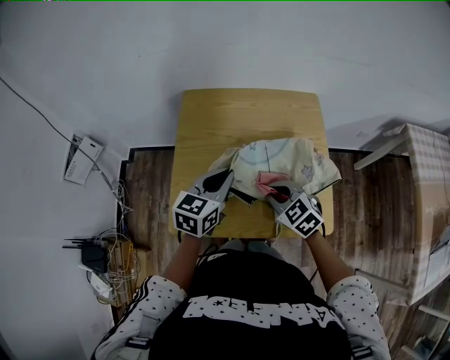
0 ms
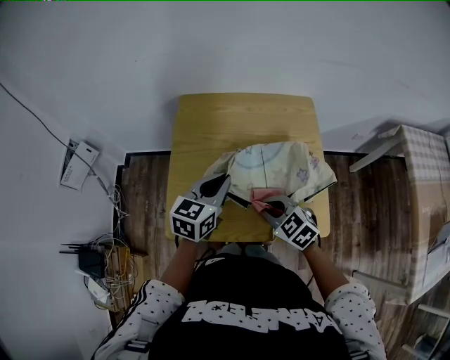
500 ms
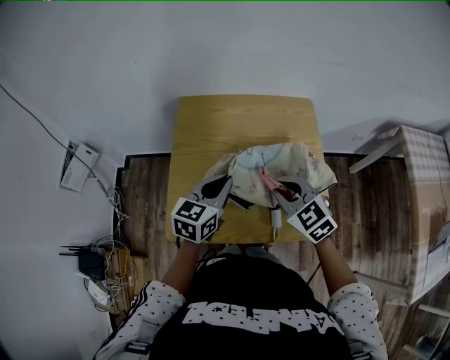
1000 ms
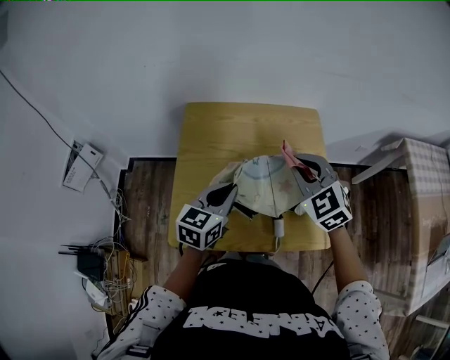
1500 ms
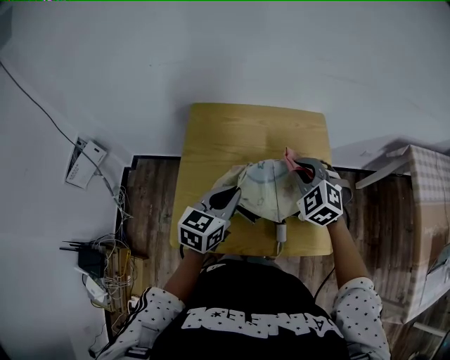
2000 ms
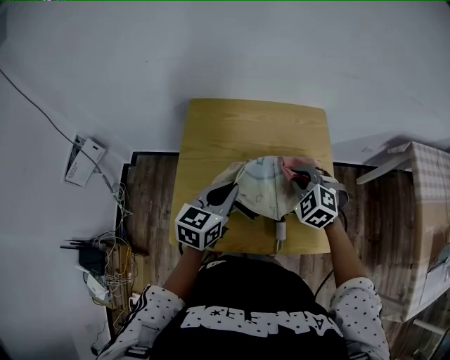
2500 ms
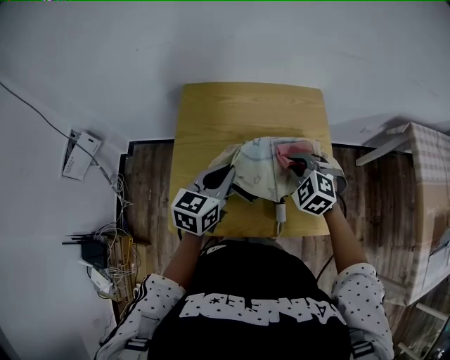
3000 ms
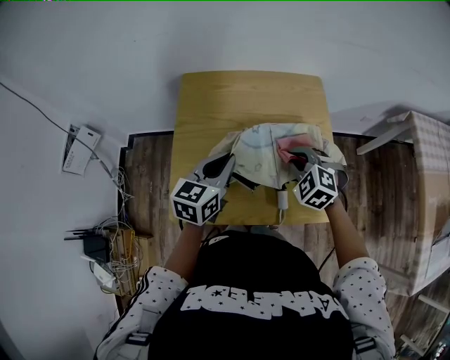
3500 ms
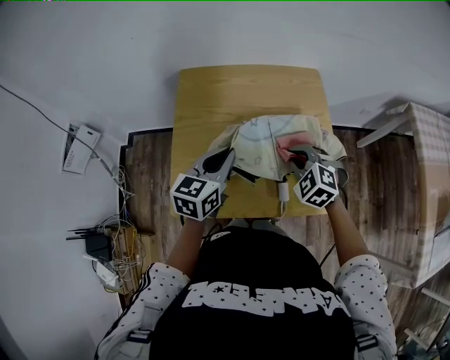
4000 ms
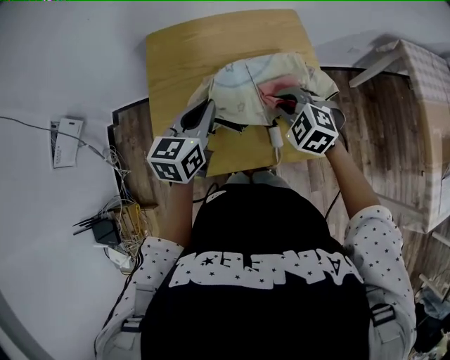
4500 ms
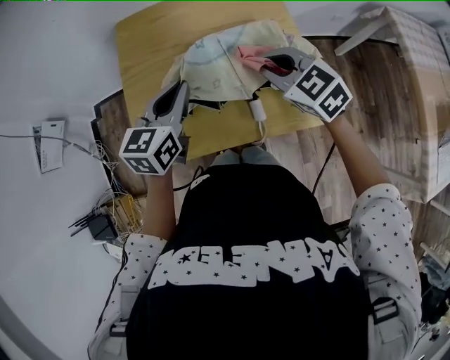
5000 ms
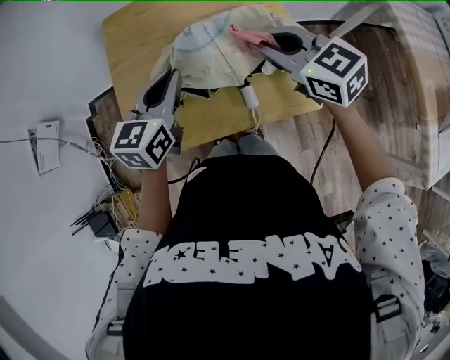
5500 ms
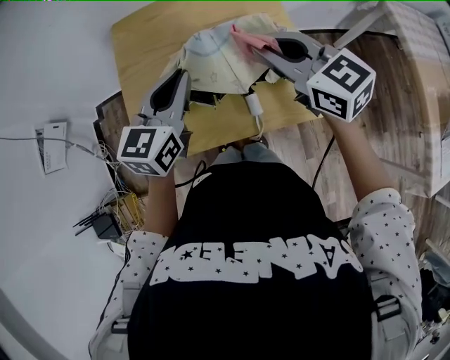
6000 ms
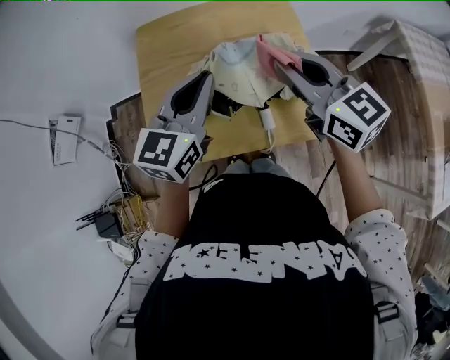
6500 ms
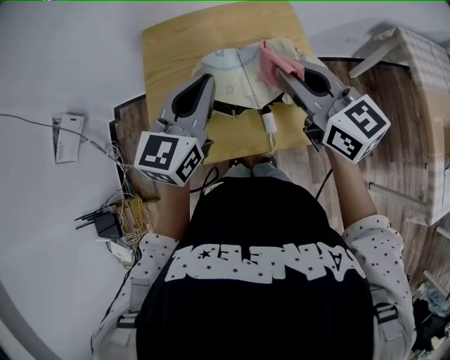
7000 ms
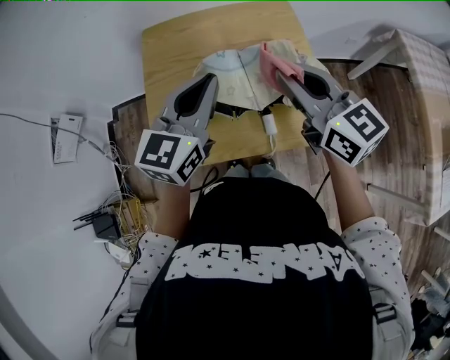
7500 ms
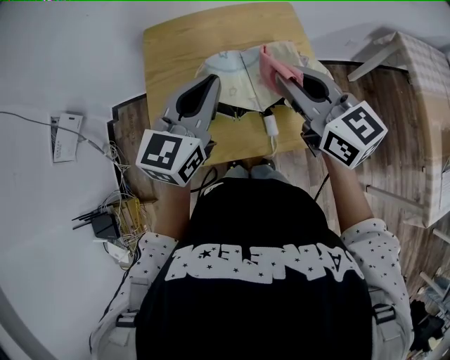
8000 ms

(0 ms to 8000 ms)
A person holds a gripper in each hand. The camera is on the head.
0 ms - 2000 ms: The right gripper moves forward, upward and to the right, some 15 cm, and changes its angle by approximately 30 degrees.
2000 ms - 4000 ms: The right gripper travels backward and downward by roughly 10 cm.
4000 ms - 6000 ms: The left gripper moves upward, approximately 5 cm. The right gripper moves upward, approximately 15 cm, and points its fingers approximately 30 degrees further upward.
6000 ms - 8000 ms: The left gripper is displaced upward by about 5 cm.

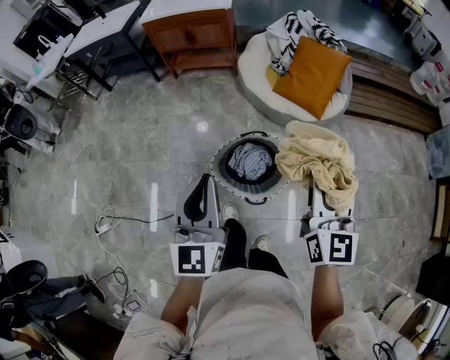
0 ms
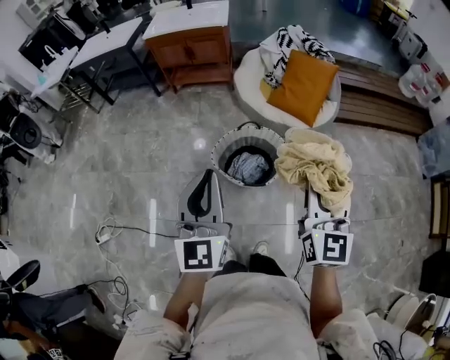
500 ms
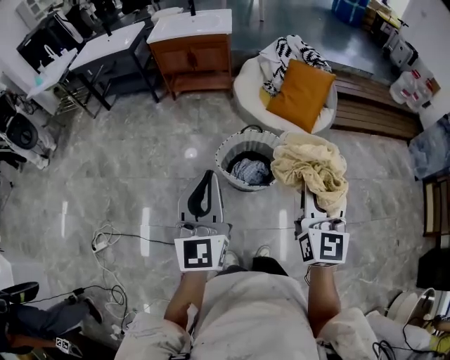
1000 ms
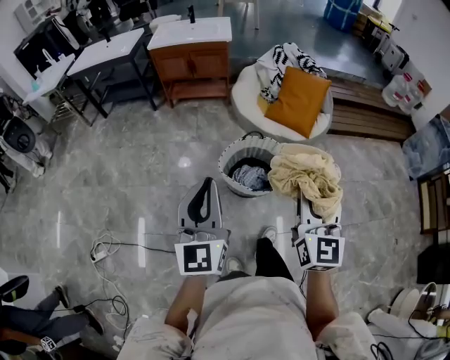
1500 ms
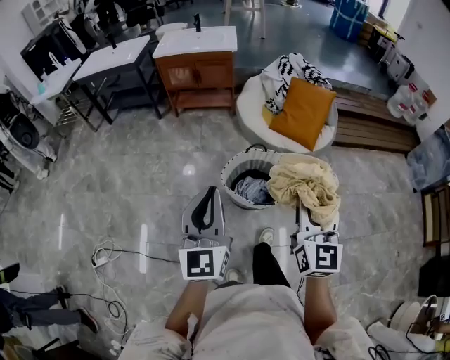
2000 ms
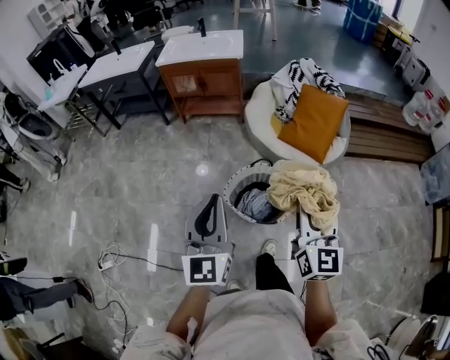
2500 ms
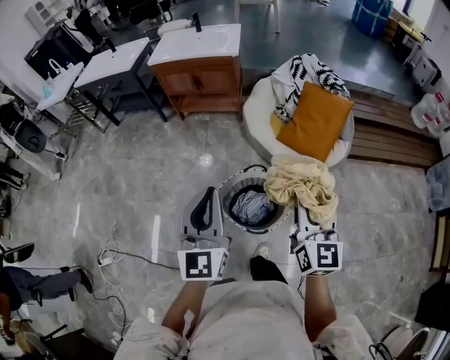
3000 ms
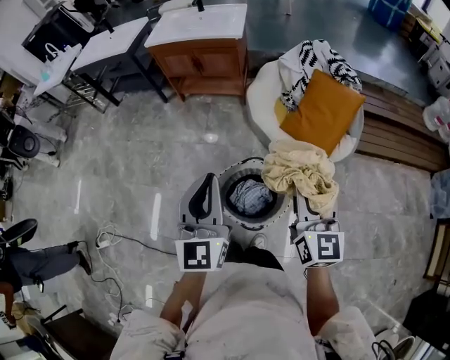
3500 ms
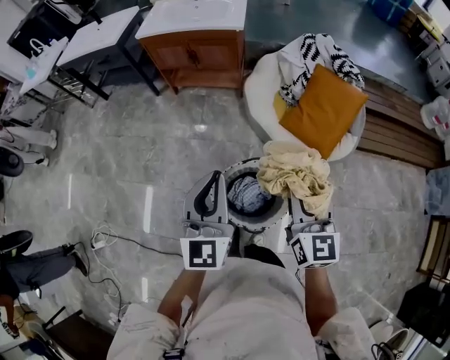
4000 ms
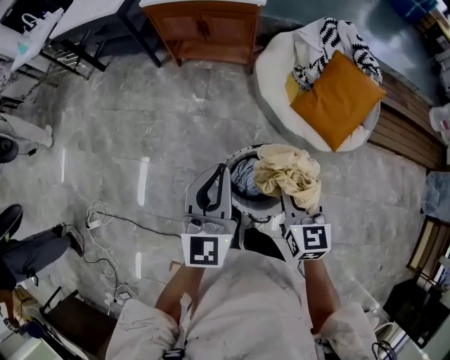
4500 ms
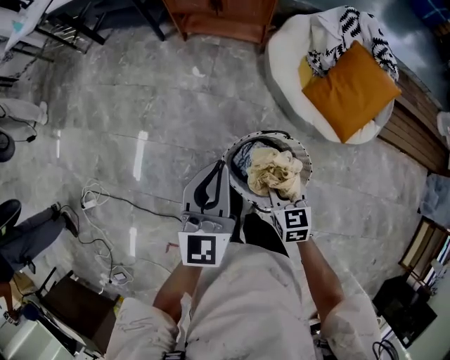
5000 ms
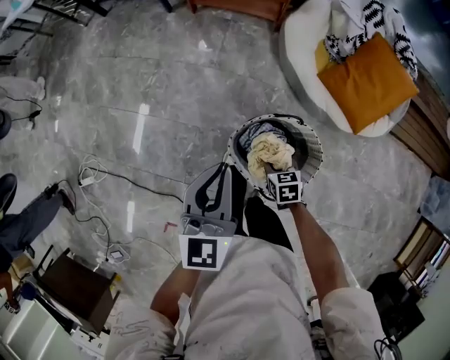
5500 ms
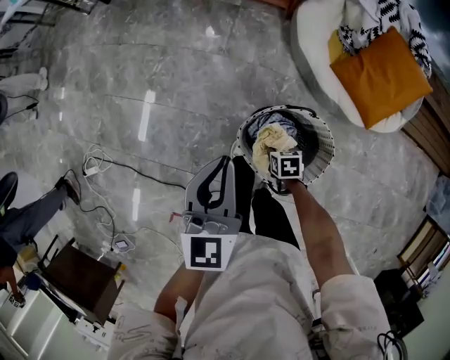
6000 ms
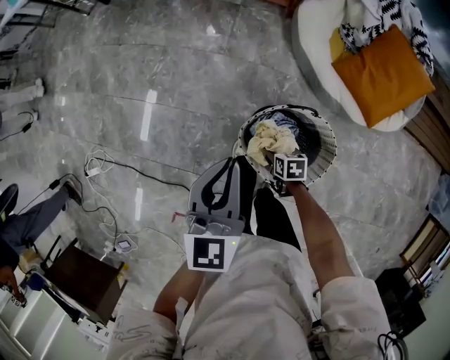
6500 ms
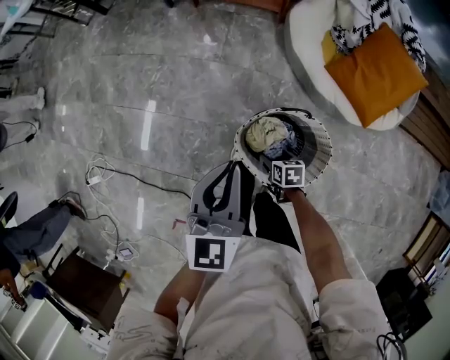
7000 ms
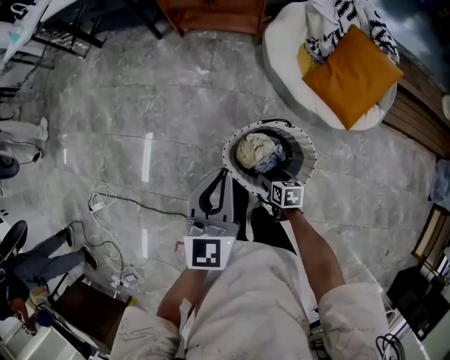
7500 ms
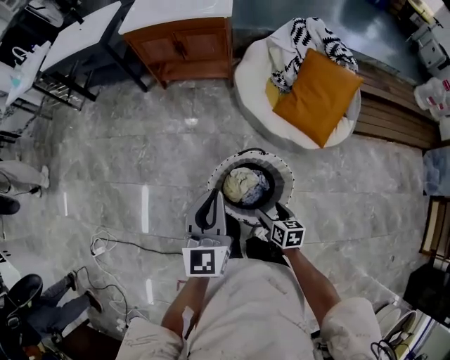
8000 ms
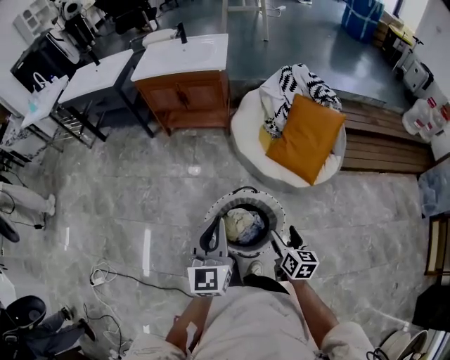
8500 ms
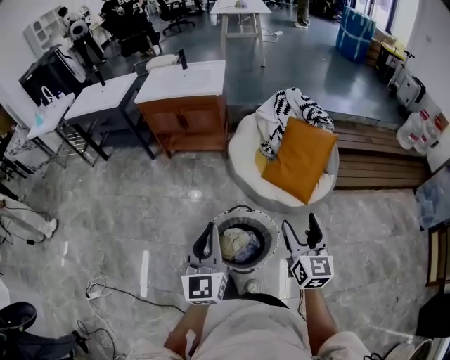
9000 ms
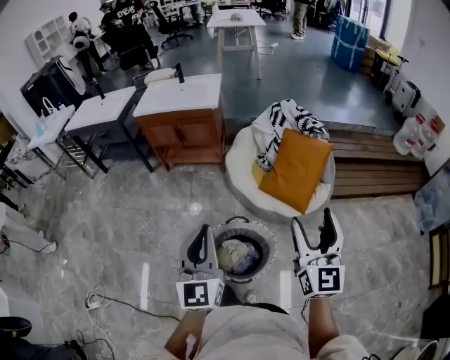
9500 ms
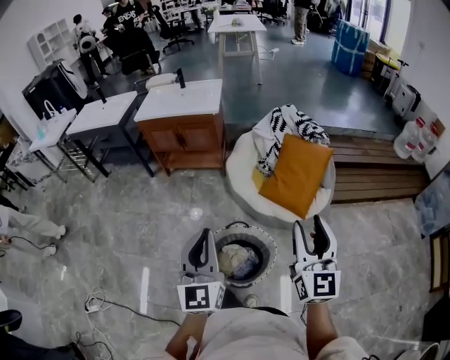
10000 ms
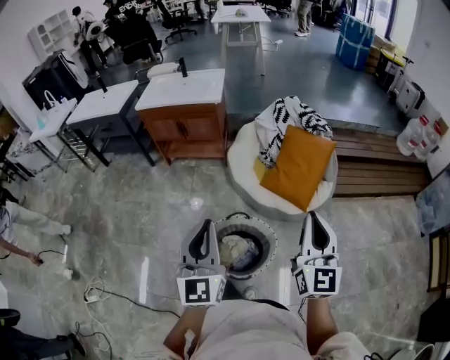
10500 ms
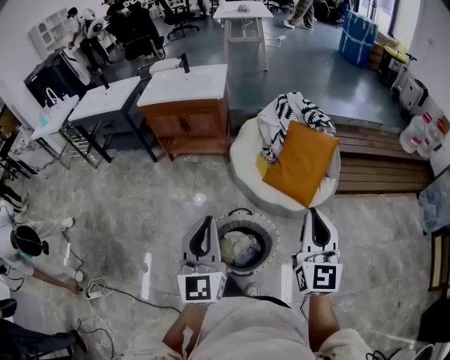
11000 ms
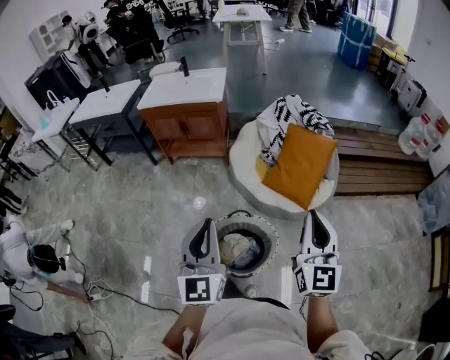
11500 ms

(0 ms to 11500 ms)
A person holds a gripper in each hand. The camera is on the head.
0 ms - 2000 ms: The grippers both shift to the left and backward by roughly 15 cm.
2000 ms - 4000 ms: Both grippers move forward, approximately 35 cm.
4000 ms - 6000 ms: The right gripper is displaced downward by approximately 50 cm, and tilts its fingers about 60 degrees downward. The left gripper moves downward, approximately 15 cm, and turns by about 20 degrees.
6000 ms - 7500 ms: The right gripper travels backward and upward by about 10 cm, and opens. The left gripper is displaced to the right by approximately 5 cm.
7500 ms - 9500 ms: The left gripper is displaced upward, to the right and backward by some 25 cm, and swivels roughly 20 degrees. The right gripper moves upward and to the right, roughly 60 cm, and tilts its fingers roughly 60 degrees upward.
9500 ms - 11500 ms: The right gripper closes its fingers.

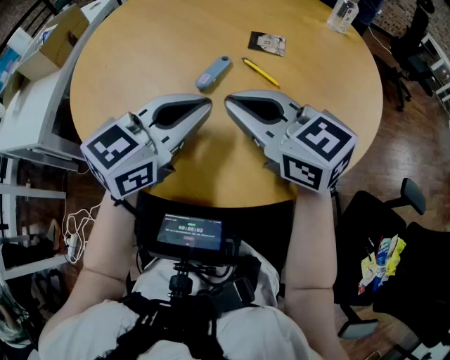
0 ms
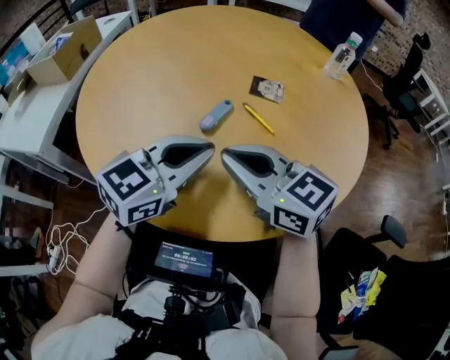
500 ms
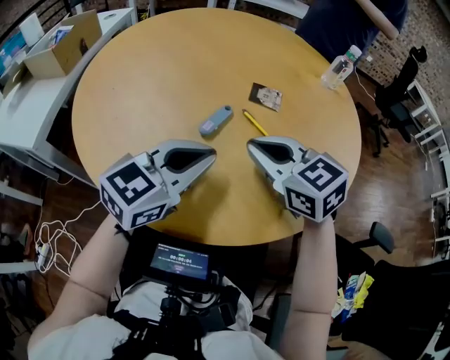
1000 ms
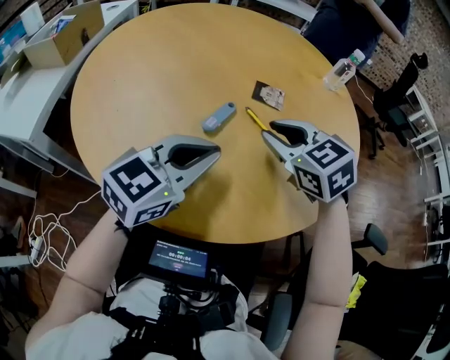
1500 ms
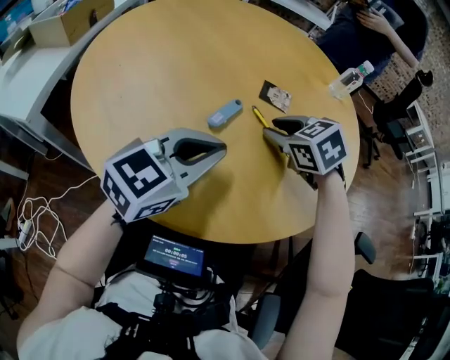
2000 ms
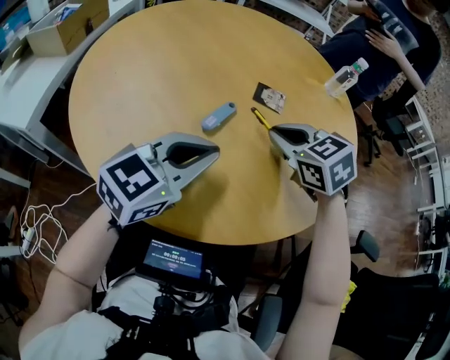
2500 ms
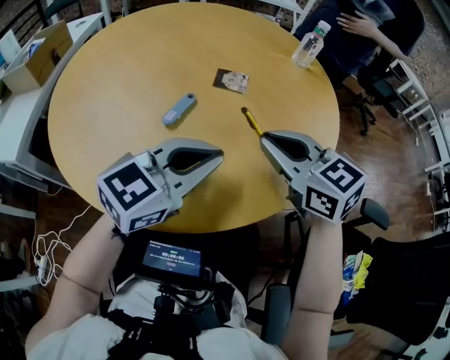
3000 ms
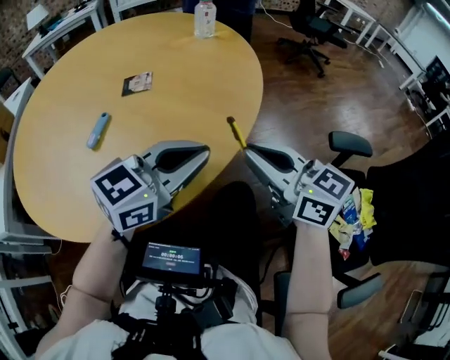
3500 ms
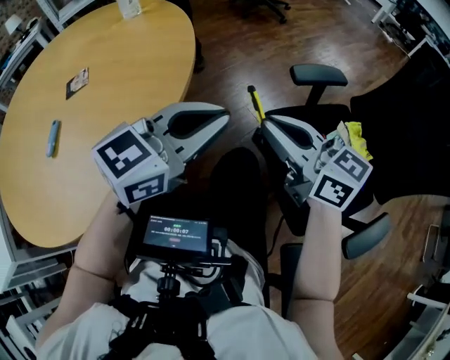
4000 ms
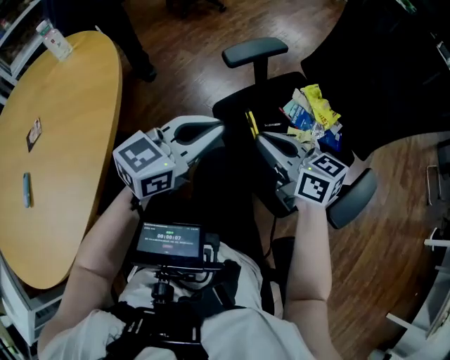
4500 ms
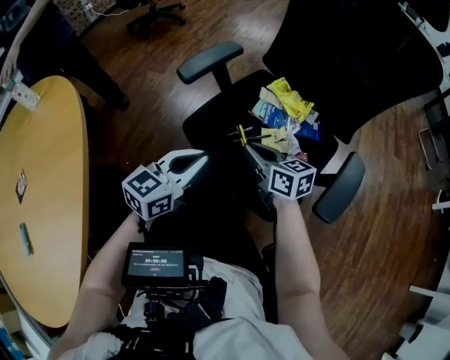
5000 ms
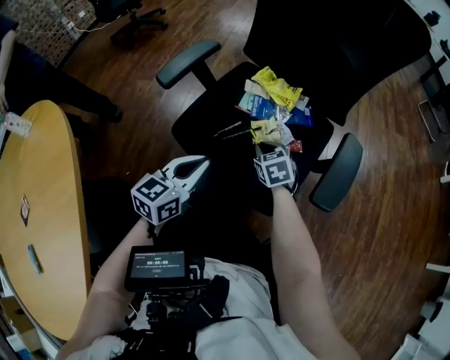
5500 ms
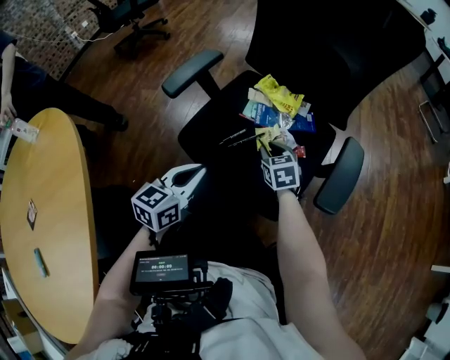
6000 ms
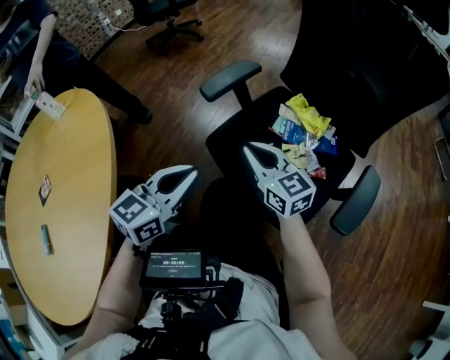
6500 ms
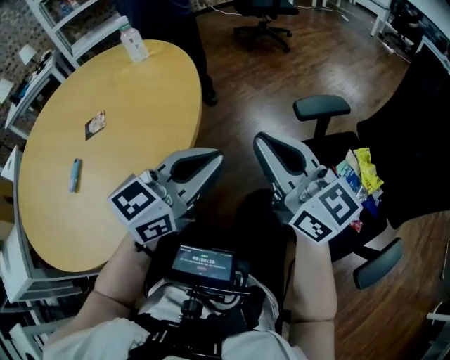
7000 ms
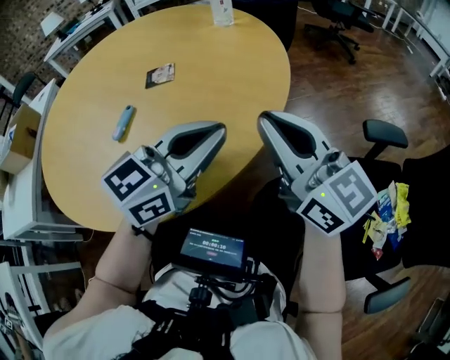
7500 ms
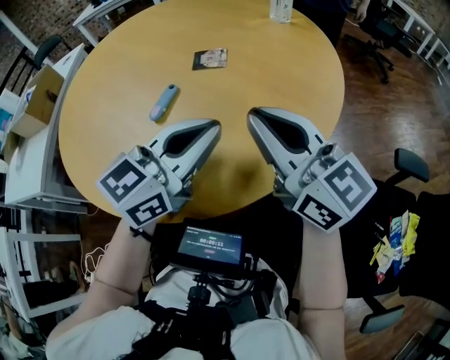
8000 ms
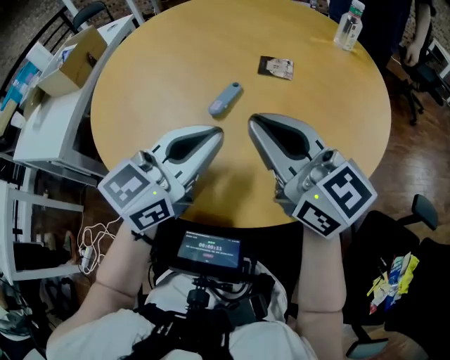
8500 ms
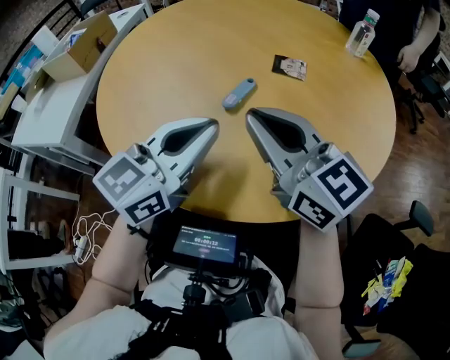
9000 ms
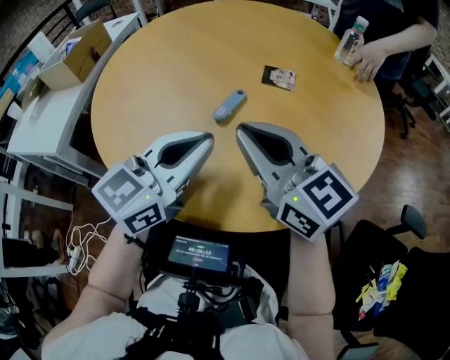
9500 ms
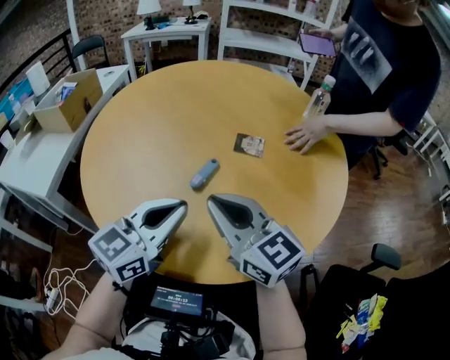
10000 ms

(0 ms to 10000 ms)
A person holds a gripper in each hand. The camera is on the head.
0 ms - 2000 ms: The right gripper goes about 15 cm forward, to the right and downward, points its fingers about 40 degrees further downward, and opens its fingers.
2000 ms - 4000 ms: The two grippers travel together, approximately 40 cm. The left gripper changes its angle by about 40 degrees; the right gripper points its fingers roughly 50 degrees further upward, and closes up.
4000 ms - 6000 ms: The right gripper ends up roughly 40 cm from where it was, and angles its fingers downward, by roughly 30 degrees. The left gripper shifts about 20 cm downward, and swivels about 30 degrees.
6000 ms - 8000 ms: The two grippers travel together, approximately 50 cm. The left gripper turns by roughly 60 degrees. Meanwhile the right gripper tilts its fingers approximately 40 degrees upward, and closes its fingers.
8000 ms - 10000 ms: The grippers both shift to the left by about 15 cm.
